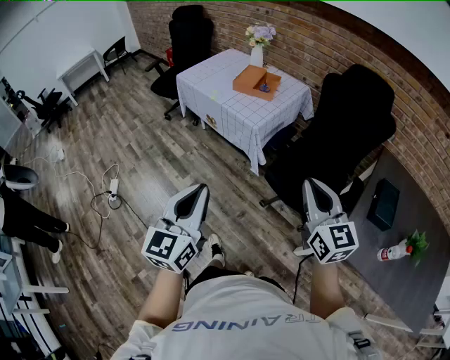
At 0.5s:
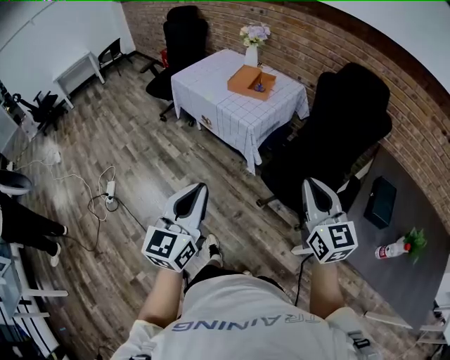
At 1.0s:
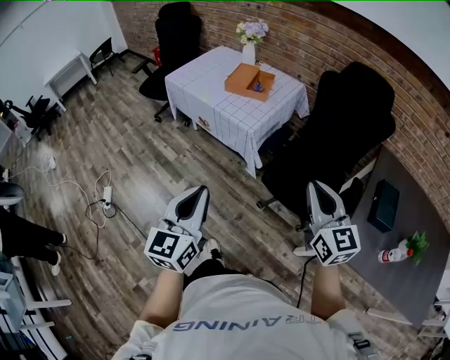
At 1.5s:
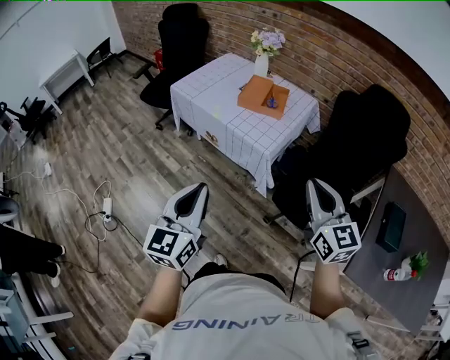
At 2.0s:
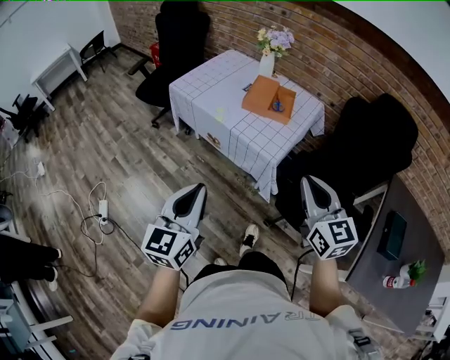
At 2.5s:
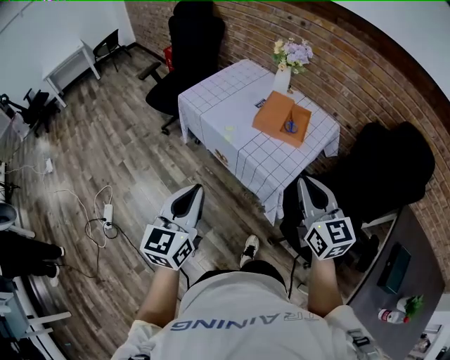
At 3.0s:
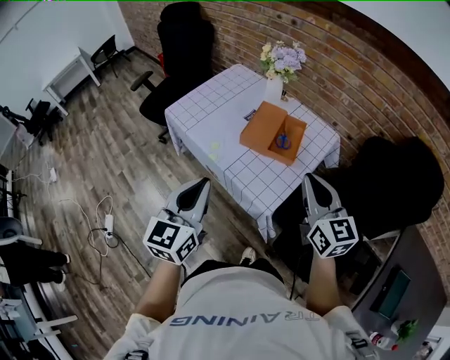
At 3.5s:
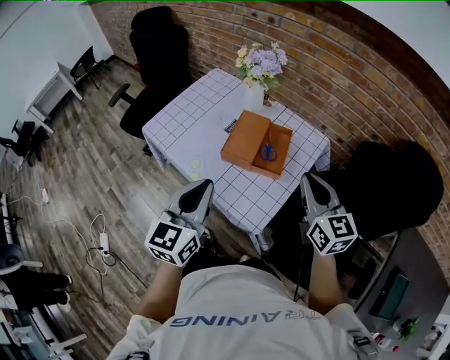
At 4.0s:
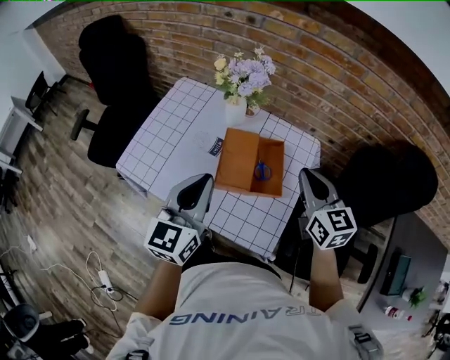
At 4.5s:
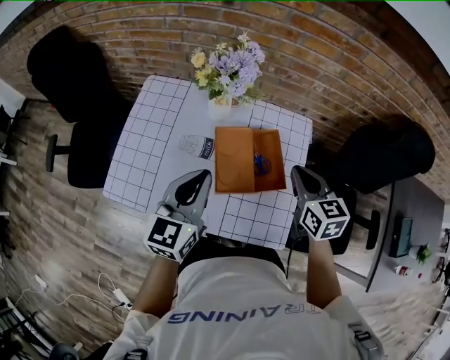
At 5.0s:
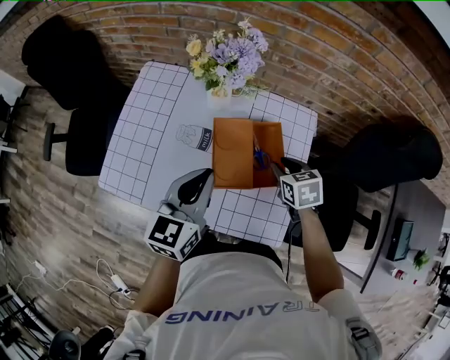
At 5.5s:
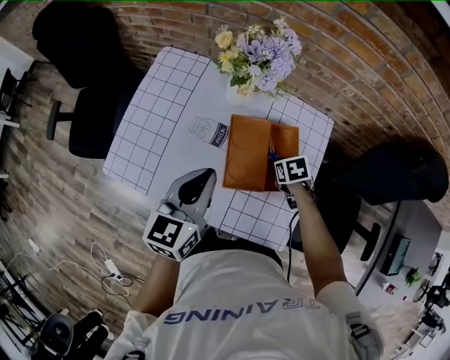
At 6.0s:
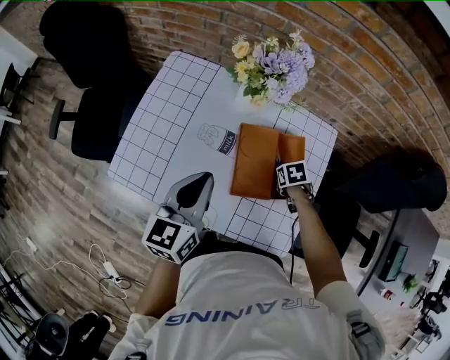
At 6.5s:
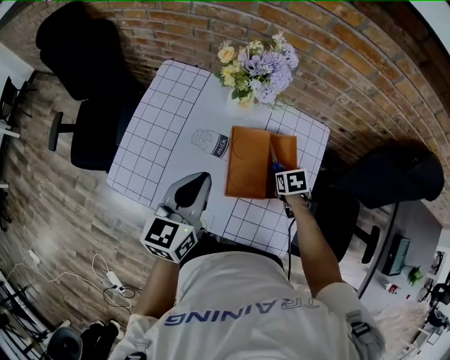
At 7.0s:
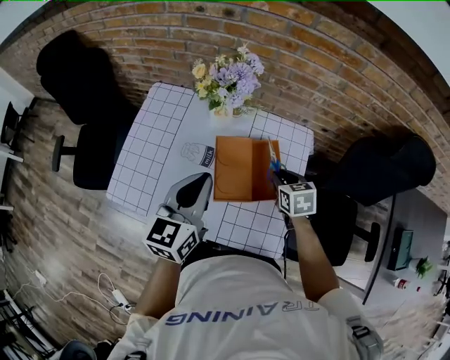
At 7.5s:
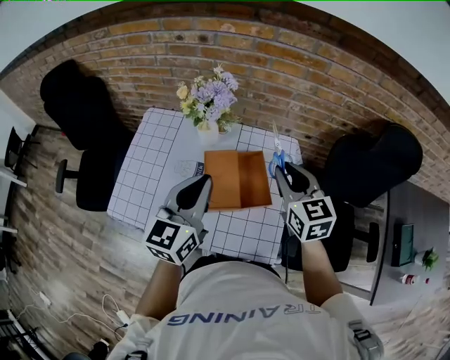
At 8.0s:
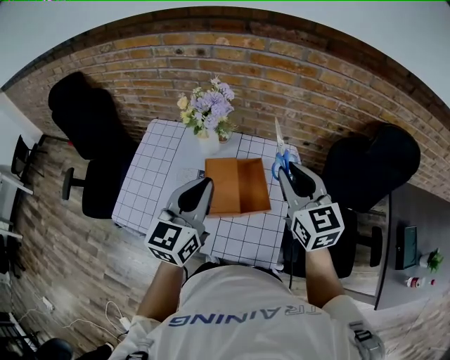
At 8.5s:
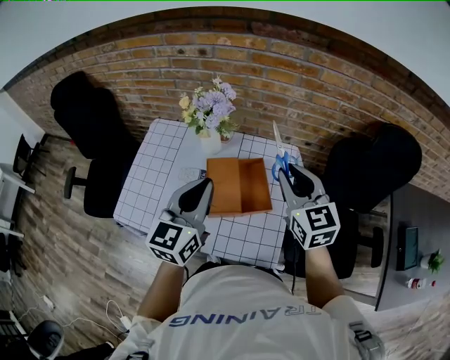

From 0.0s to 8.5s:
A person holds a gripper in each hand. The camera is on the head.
From 0.0s to 2.0s: Both grippers travel together forward and to the left, roughly 30 cm.
From 2.0s to 4.0s: The two grippers travel together, forward, about 50 cm.
From 4.0s to 6.5s: The right gripper goes some 30 cm downward, and tips its fingers downward by about 60 degrees. The left gripper moves some 15 cm.
From 6.5s to 8.5s: The right gripper moves upward, about 35 cm, and angles its fingers upward, by approximately 60 degrees. Meanwhile the left gripper is displaced upward and to the right by about 15 cm.

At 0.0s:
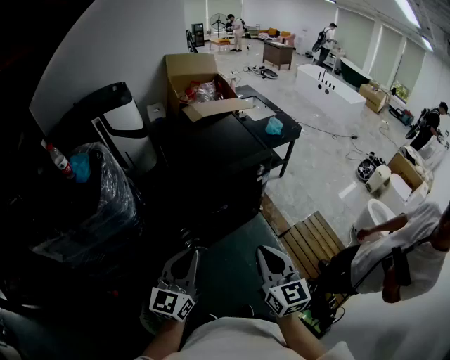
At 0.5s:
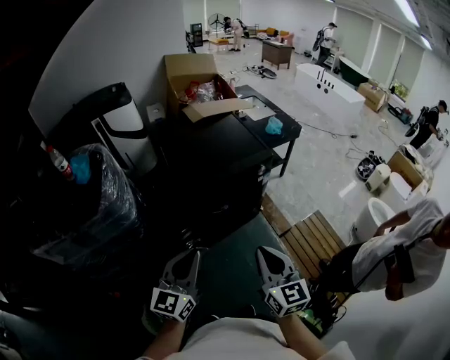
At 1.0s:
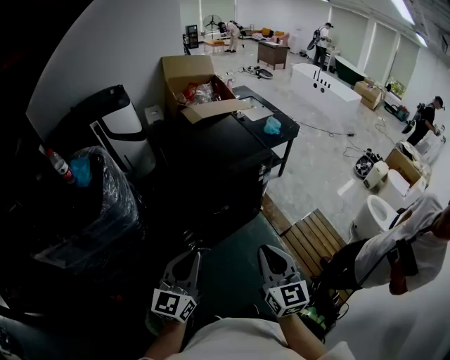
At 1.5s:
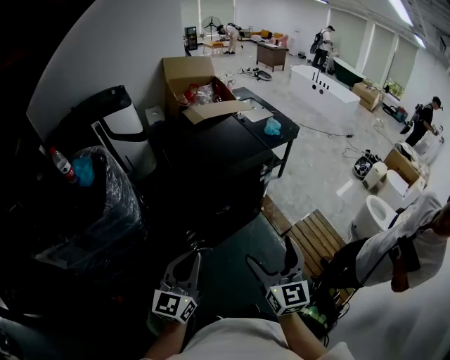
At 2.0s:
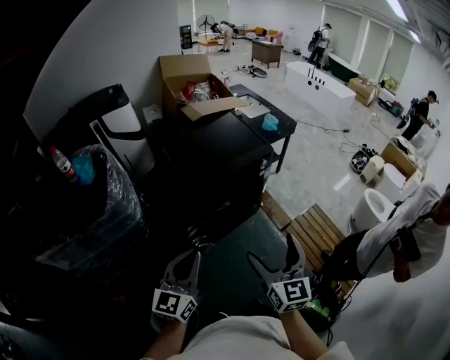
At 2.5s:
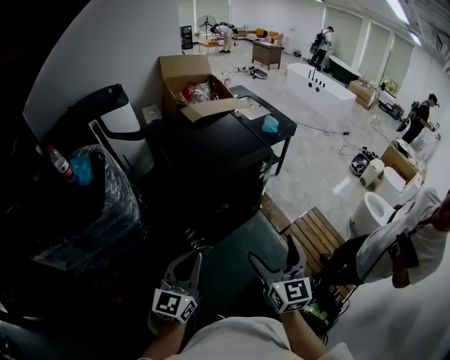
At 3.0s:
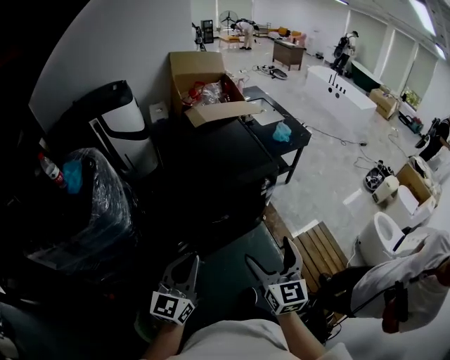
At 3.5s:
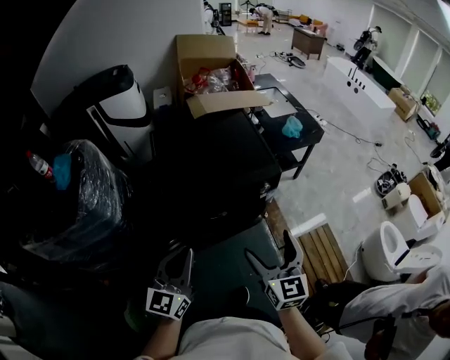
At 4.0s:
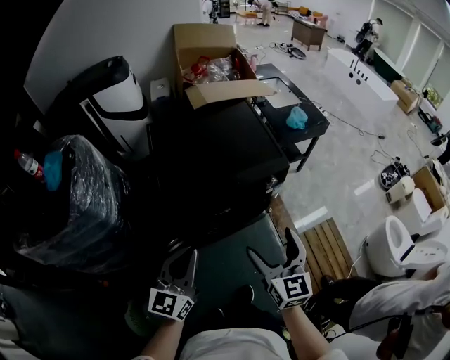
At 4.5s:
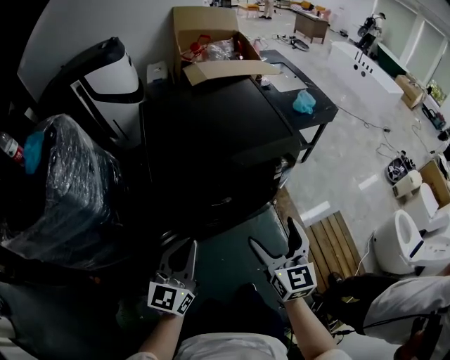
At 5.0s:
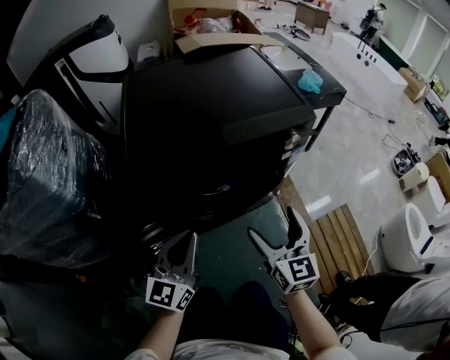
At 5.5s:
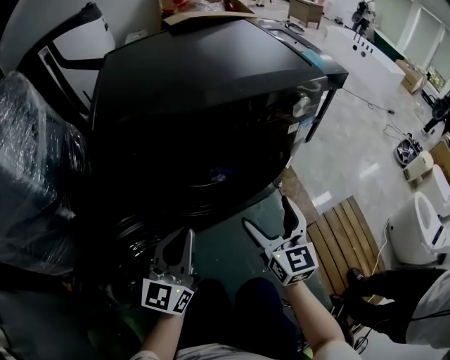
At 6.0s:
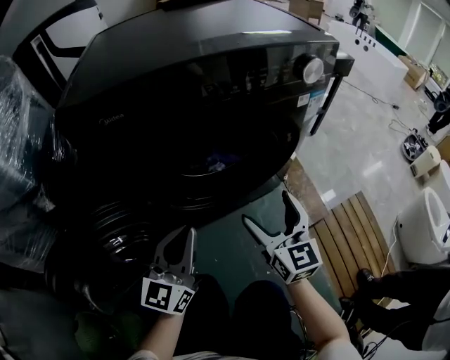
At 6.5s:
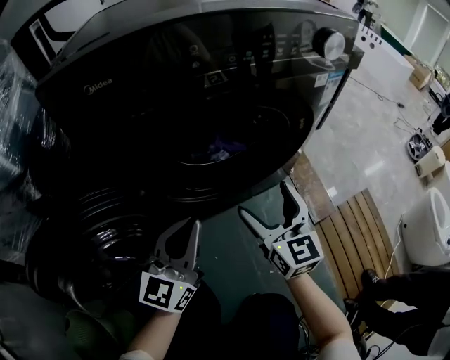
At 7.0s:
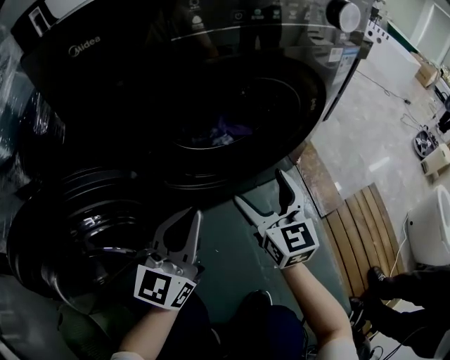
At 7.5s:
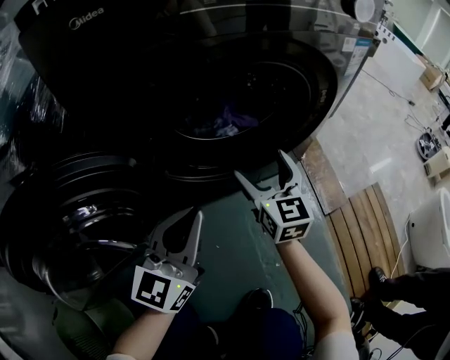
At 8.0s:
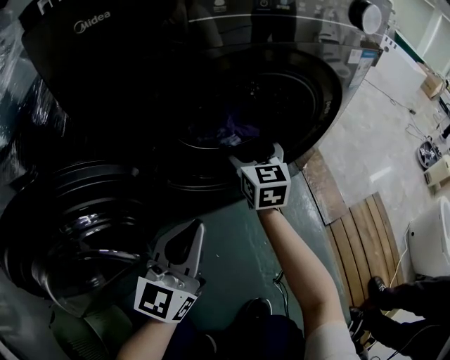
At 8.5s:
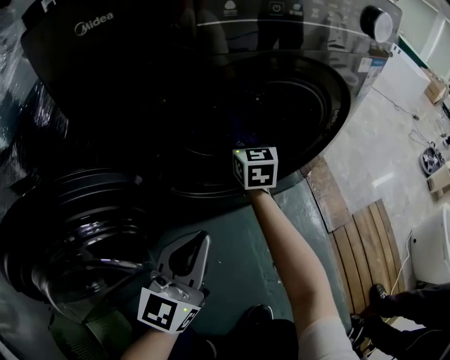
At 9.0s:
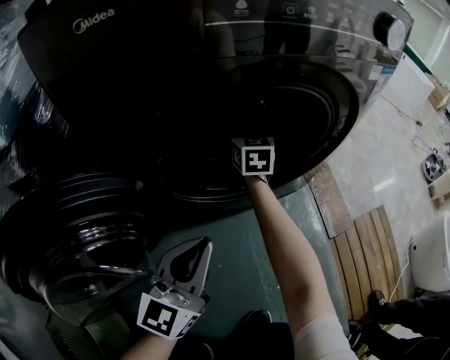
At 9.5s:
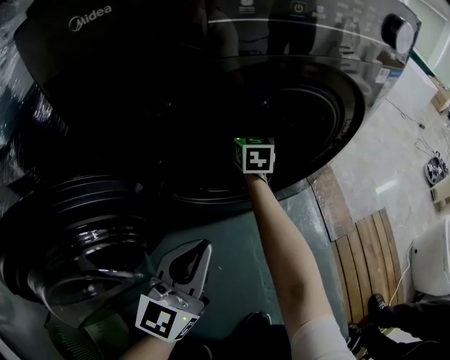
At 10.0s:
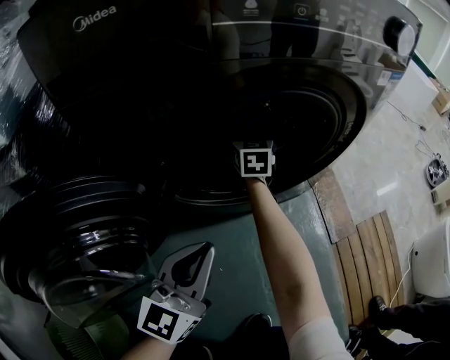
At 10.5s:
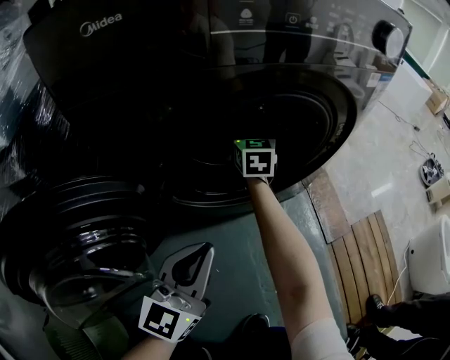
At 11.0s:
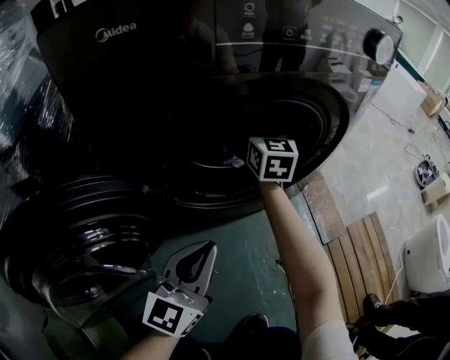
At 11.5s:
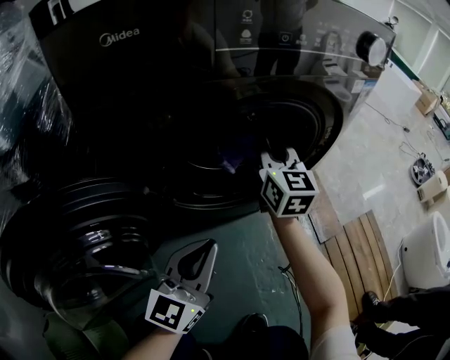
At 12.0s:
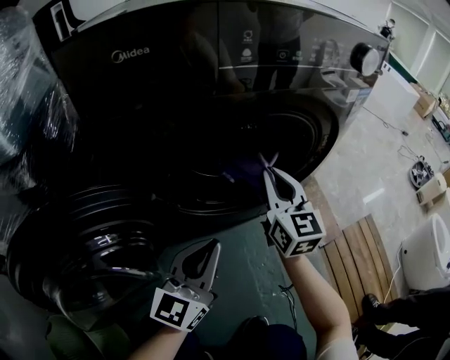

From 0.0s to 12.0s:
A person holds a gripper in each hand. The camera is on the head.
From 0.0s to 2.0s: The left gripper travels to the left by roughly 5 cm. The right gripper opens up.
From 2.0s to 4.0s: The right gripper goes approximately 25 cm forward, while the left gripper is displaced forward and to the right by roughly 25 cm.
From 4.0s to 6.0s: Both grippers travel together downward, roughly 50 cm.
From 6.0s to 8.0s: The left gripper moves downward, about 10 cm; the right gripper is displaced forward, downward and to the left by some 25 cm.
From 8.0s to 10.0s: The right gripper shifts approximately 10 cm forward, and closes up.
From 10.0s to 12.0s: The right gripper travels backward, upward and to the right by about 25 cm.

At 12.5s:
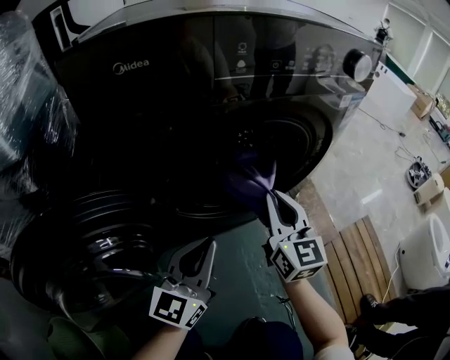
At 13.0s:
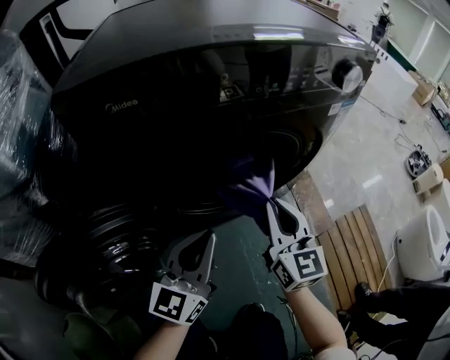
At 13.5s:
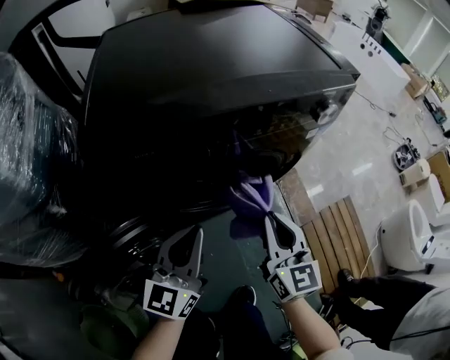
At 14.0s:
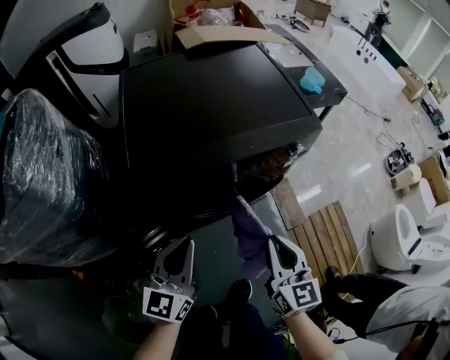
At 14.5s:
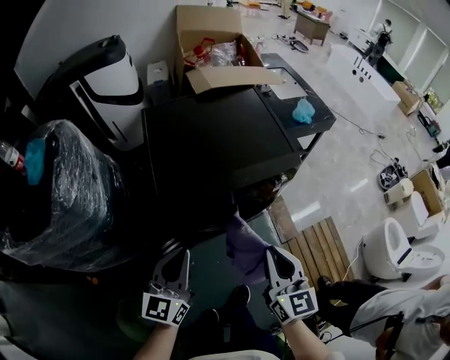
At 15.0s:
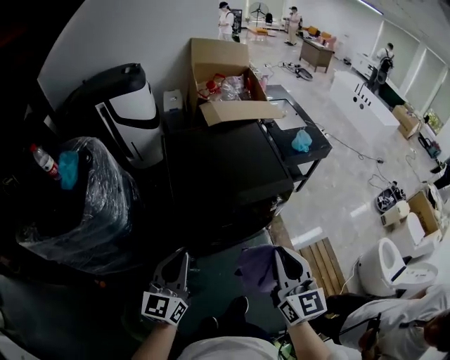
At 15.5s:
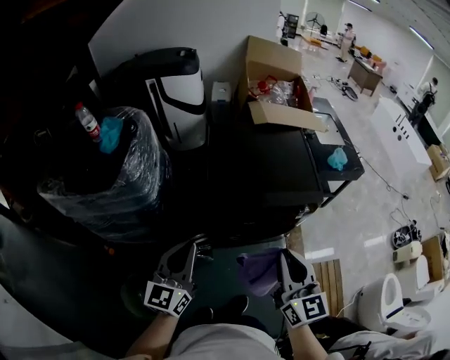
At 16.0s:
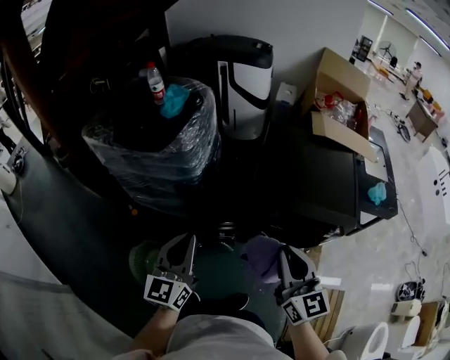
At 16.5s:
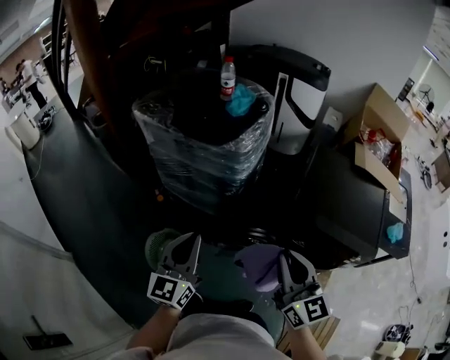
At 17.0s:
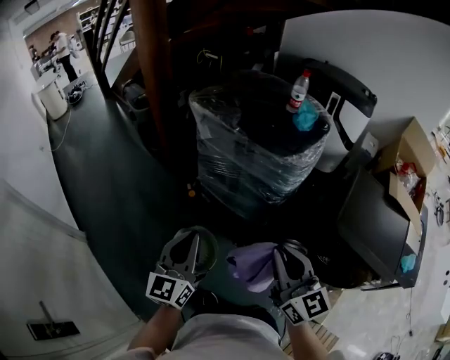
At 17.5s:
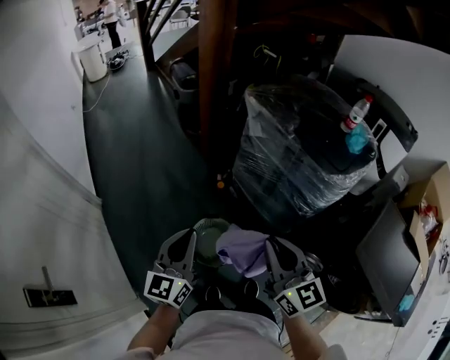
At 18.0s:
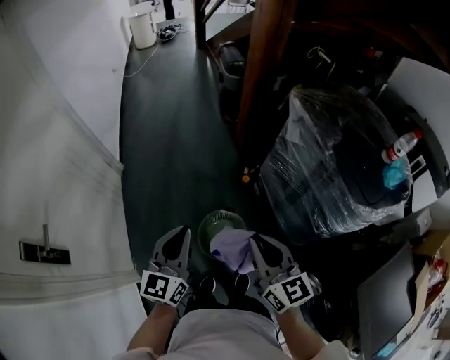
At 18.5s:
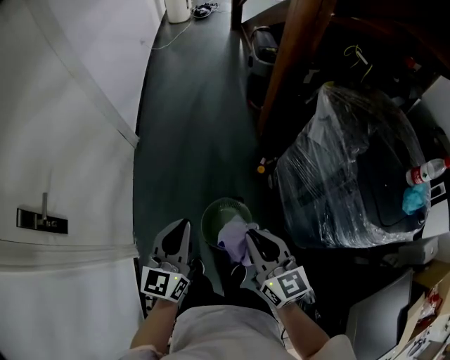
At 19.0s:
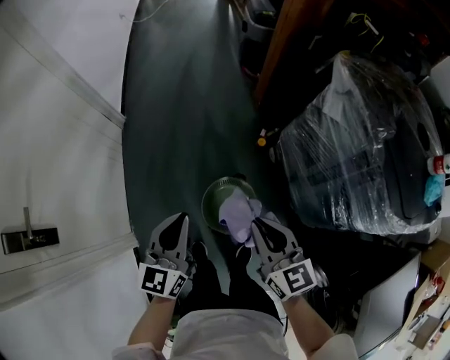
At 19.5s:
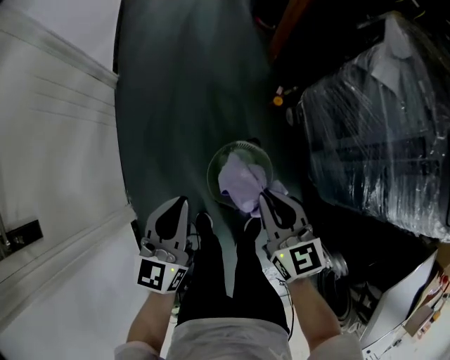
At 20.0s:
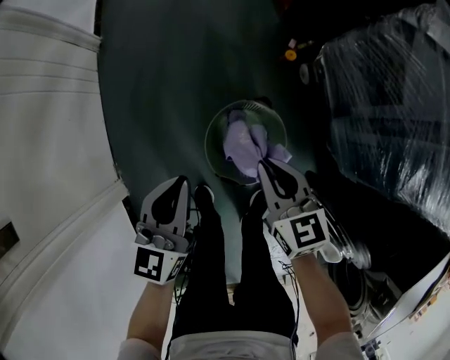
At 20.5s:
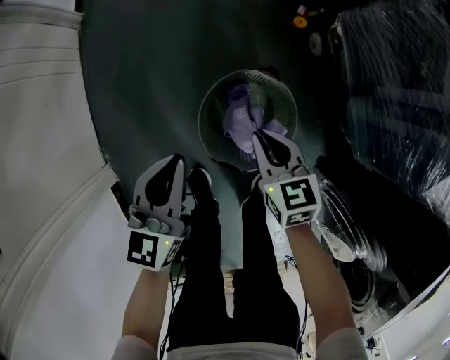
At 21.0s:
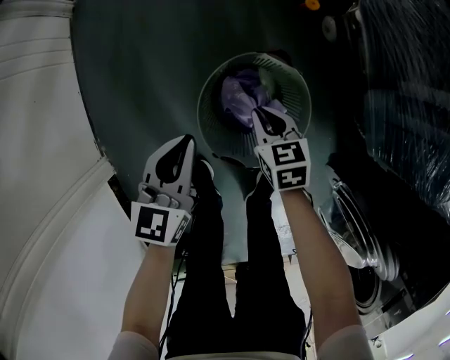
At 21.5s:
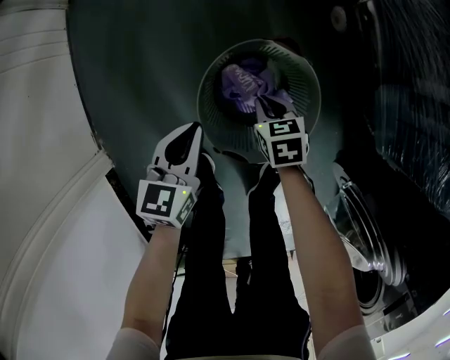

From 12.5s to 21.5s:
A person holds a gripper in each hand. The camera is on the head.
From 12.5s to 14.5s: Both grippers move upward, roughly 50 cm.
From 14.5s to 17.0s: The pair of grippers is taken about 50 cm. The right gripper rotates roughly 70 degrees. The left gripper swivels about 60 degrees.
From 17.0s to 19.5s: Both grippers travel together downward, roughly 30 cm. The right gripper changes its angle by some 50 degrees; the left gripper turns by roughly 40 degrees.
From 19.5s to 21.5s: The two grippers go some 50 cm downward. The left gripper rotates approximately 20 degrees; the right gripper tips its fingers downward by about 40 degrees.
